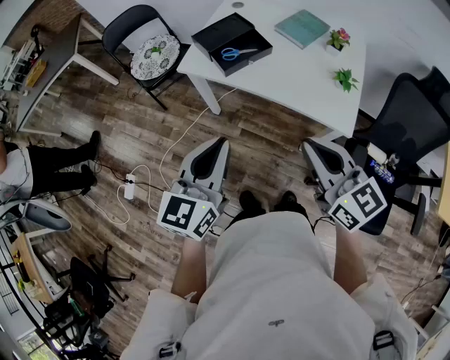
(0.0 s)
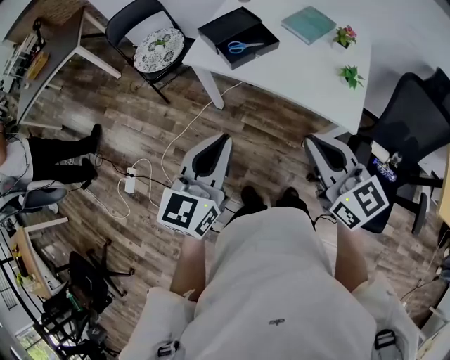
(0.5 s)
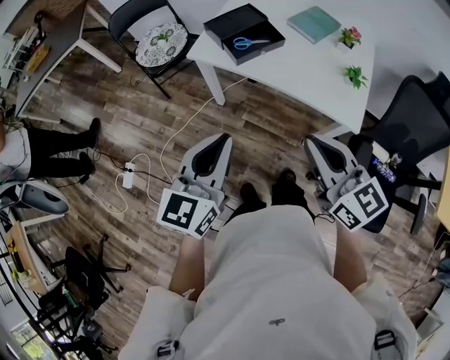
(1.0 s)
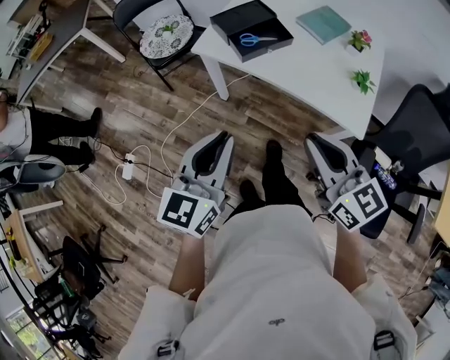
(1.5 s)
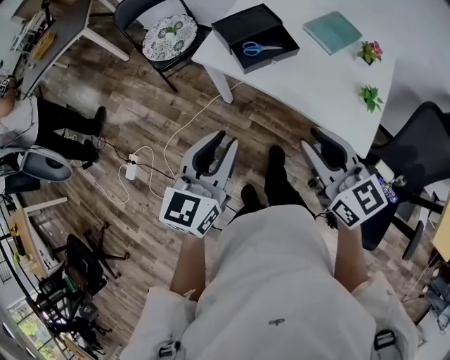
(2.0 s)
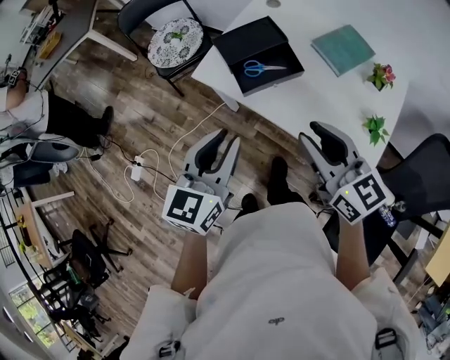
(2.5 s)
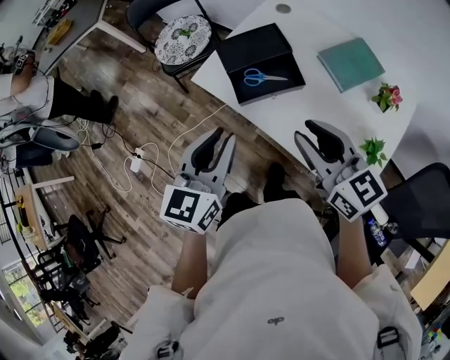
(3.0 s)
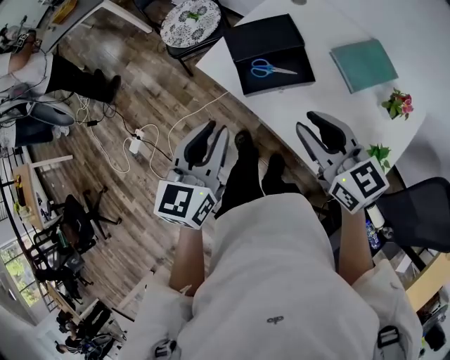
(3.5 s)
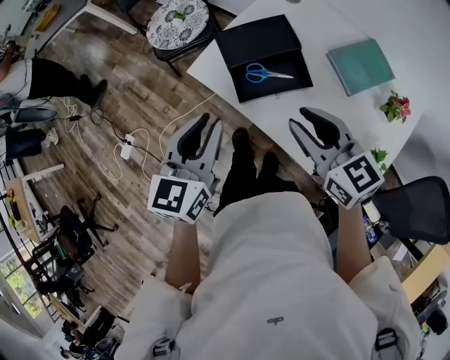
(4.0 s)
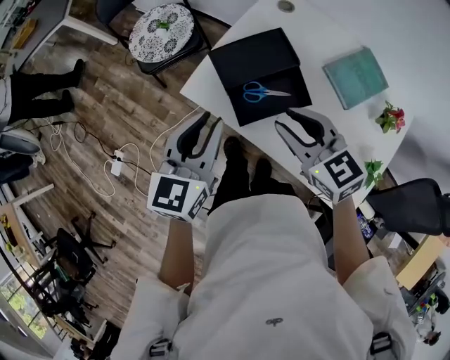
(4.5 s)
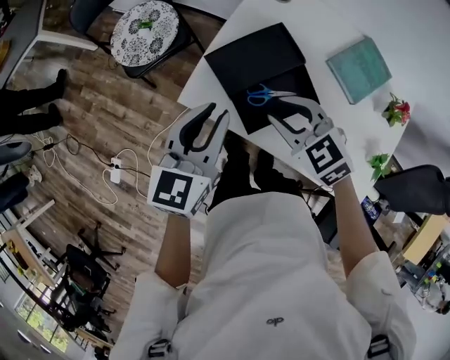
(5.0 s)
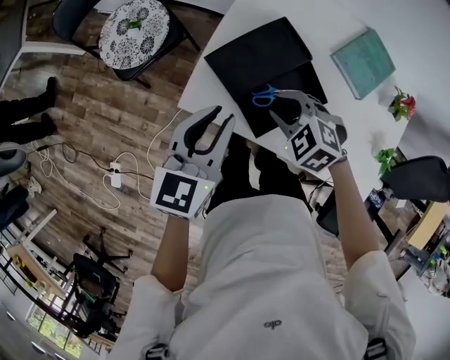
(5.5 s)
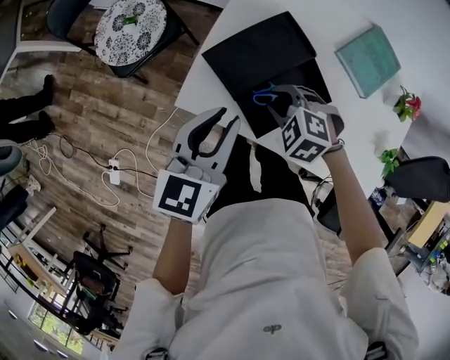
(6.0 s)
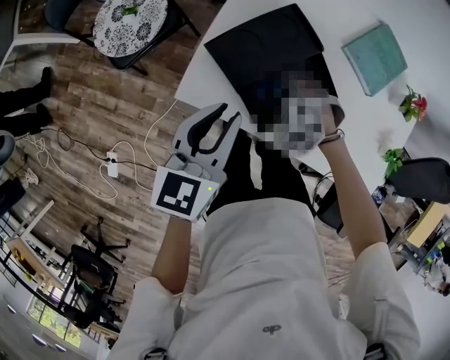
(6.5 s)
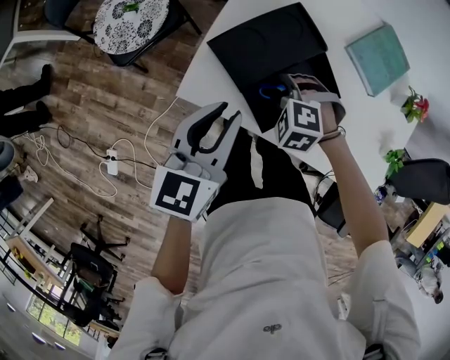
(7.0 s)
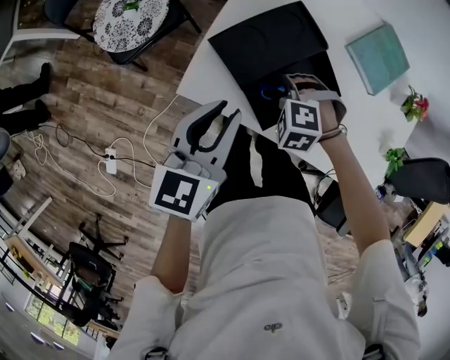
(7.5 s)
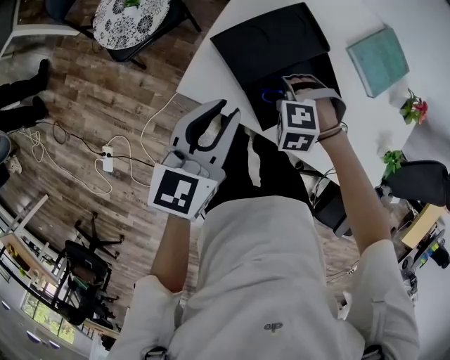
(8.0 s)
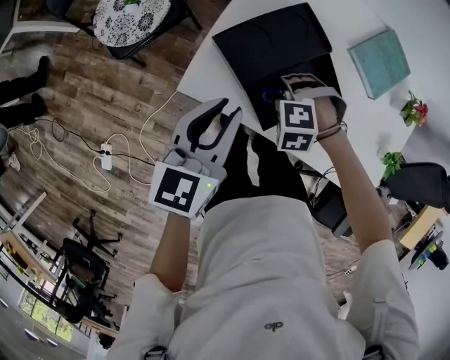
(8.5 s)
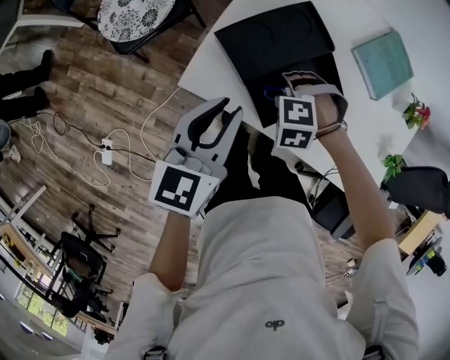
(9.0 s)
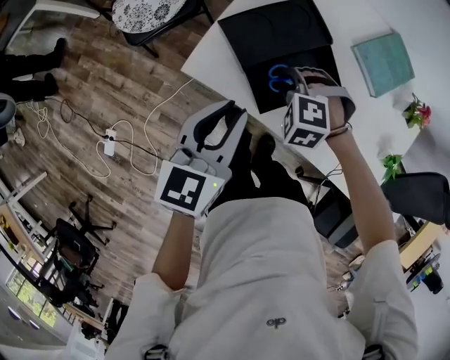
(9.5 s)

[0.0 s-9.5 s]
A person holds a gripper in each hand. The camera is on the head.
0.0 to 2.0 s: The two grippers go approximately 5 cm forward. The right gripper opens.
2.0 to 4.0 s: The grippers both shift forward by approximately 20 cm.
4.0 to 5.5 s: The left gripper goes about 15 cm forward and downward, and swivels approximately 20 degrees. Meanwhile the right gripper is displaced downward and forward by roughly 20 cm, and tilts its fingers roughly 40 degrees downward.
5.5 to 7.5 s: The right gripper moves downward, roughly 10 cm, and changes its angle by approximately 30 degrees.
7.5 to 9.5 s: The left gripper moves approximately 5 cm.

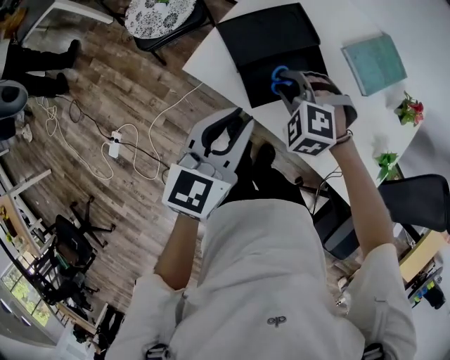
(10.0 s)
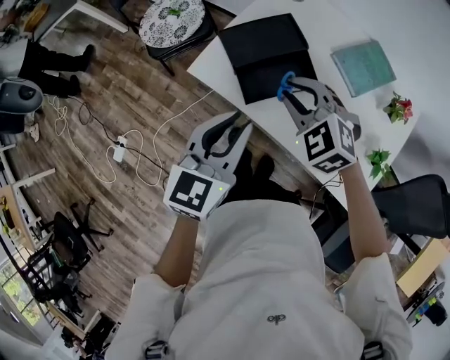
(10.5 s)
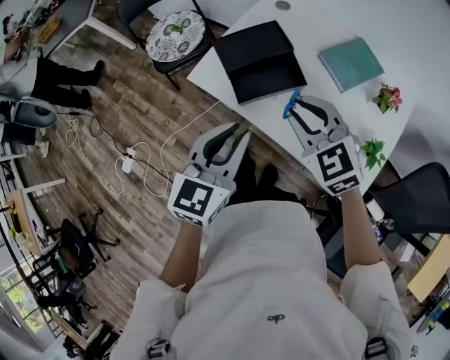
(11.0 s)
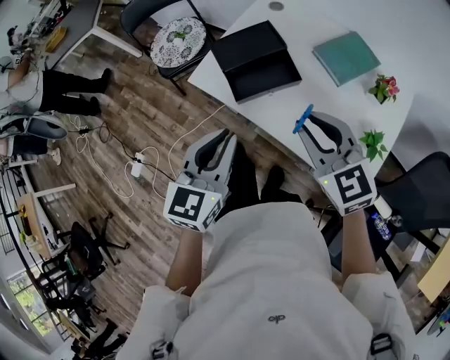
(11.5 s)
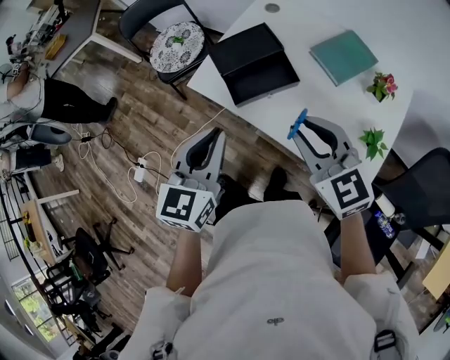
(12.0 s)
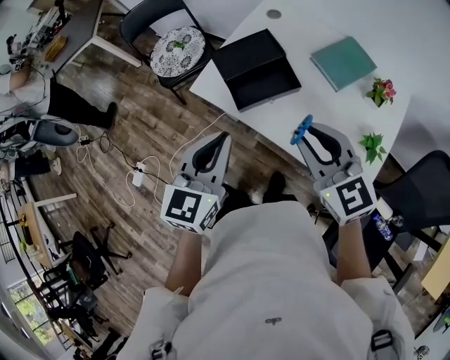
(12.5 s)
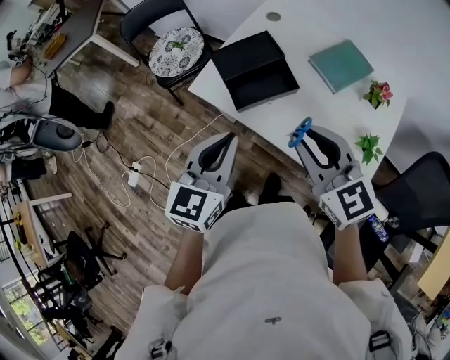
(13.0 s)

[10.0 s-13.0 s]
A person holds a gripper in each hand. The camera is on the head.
10.0 to 11.5 s: The left gripper heads backward and upward, covering roughly 15 cm. Meanwhile the right gripper travels upward, backward and to the right by approximately 25 cm, and points its fingers about 40 degrees further upward.
11.5 to 13.0 s: The grippers make only small movements.

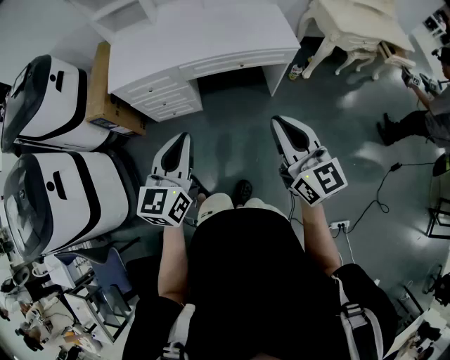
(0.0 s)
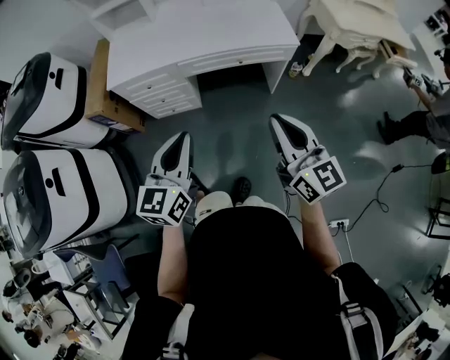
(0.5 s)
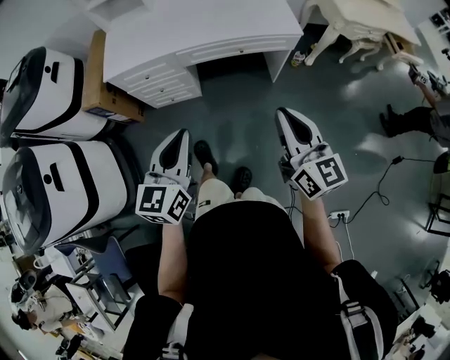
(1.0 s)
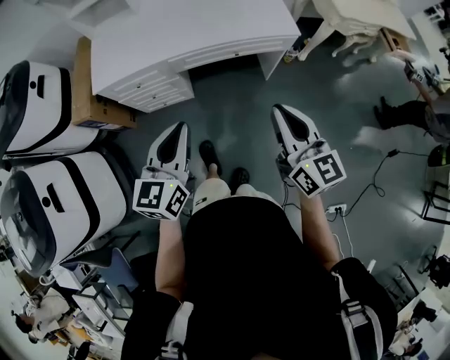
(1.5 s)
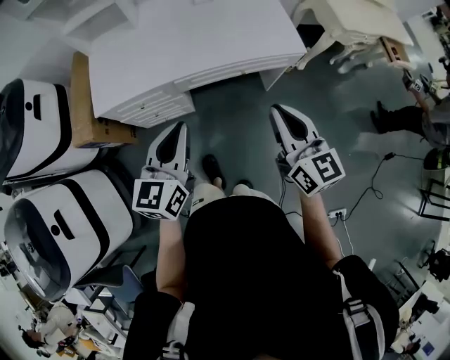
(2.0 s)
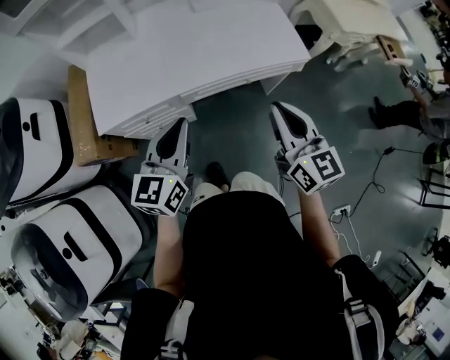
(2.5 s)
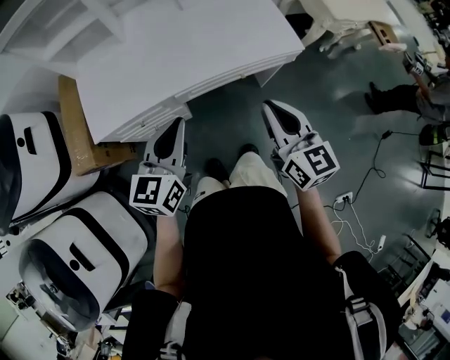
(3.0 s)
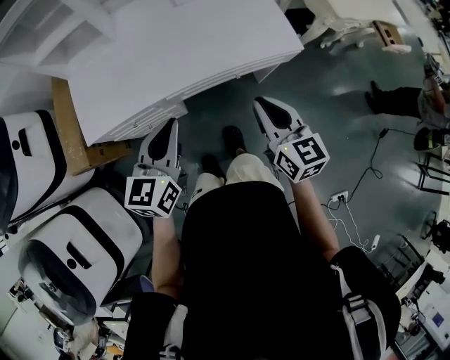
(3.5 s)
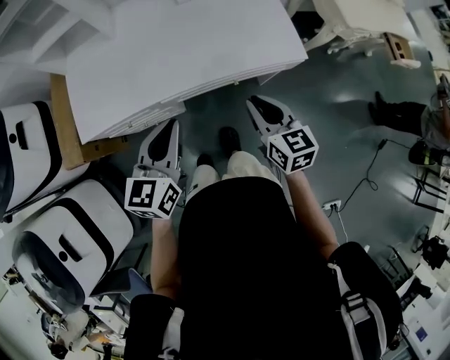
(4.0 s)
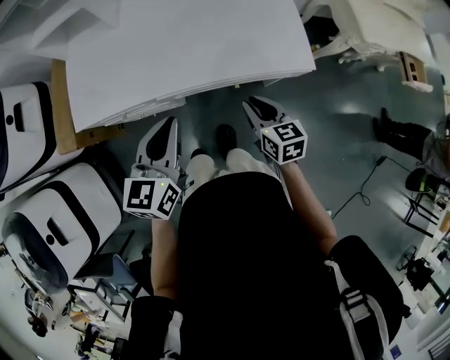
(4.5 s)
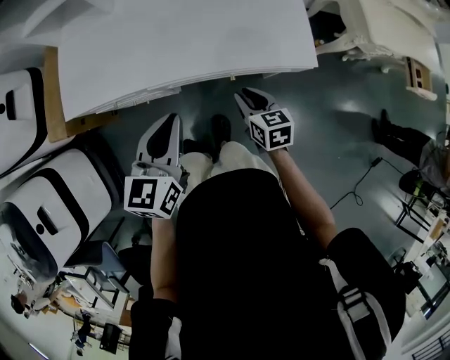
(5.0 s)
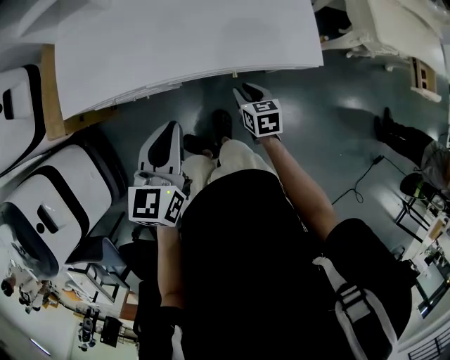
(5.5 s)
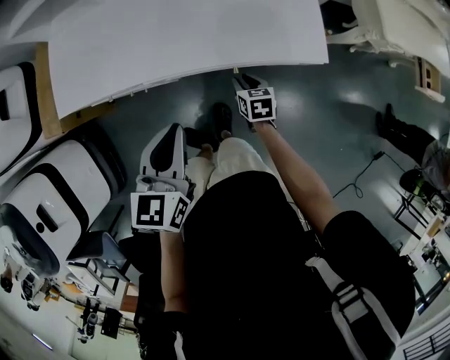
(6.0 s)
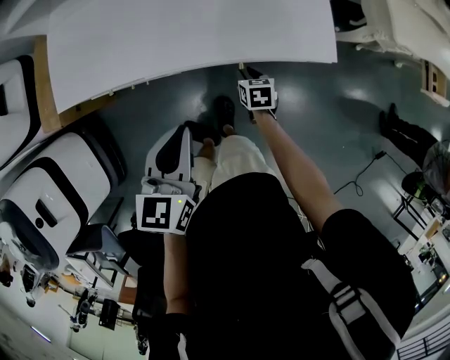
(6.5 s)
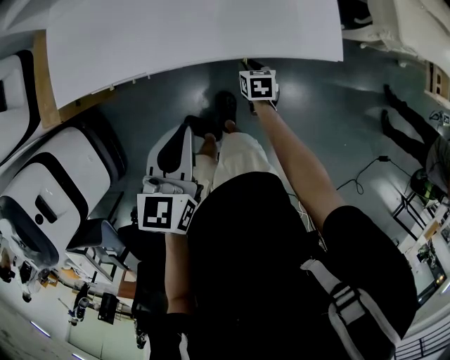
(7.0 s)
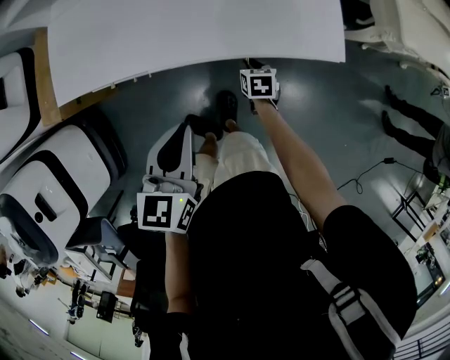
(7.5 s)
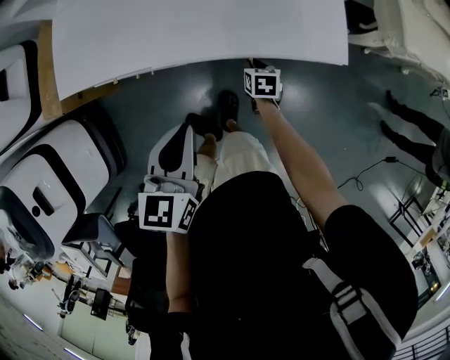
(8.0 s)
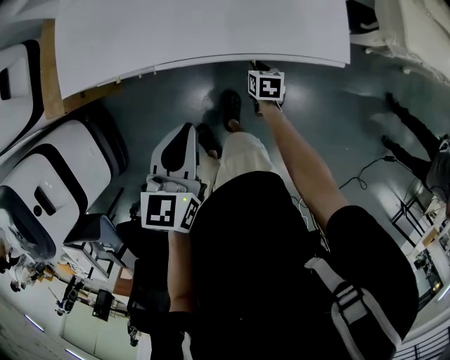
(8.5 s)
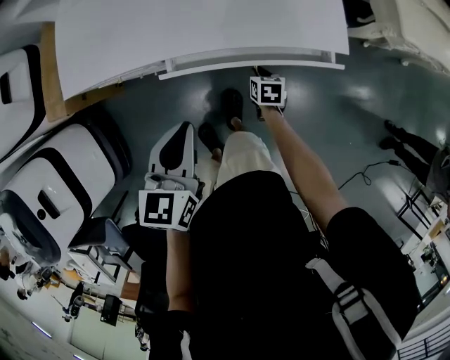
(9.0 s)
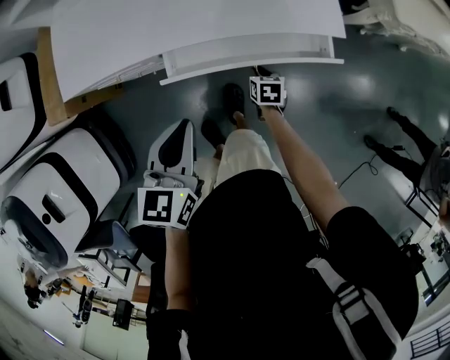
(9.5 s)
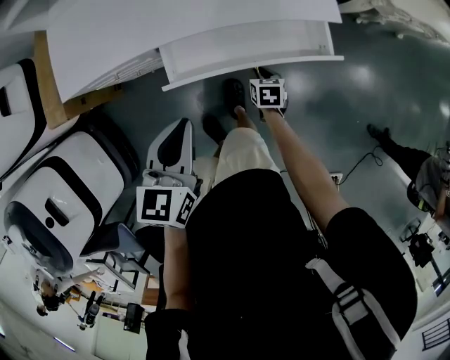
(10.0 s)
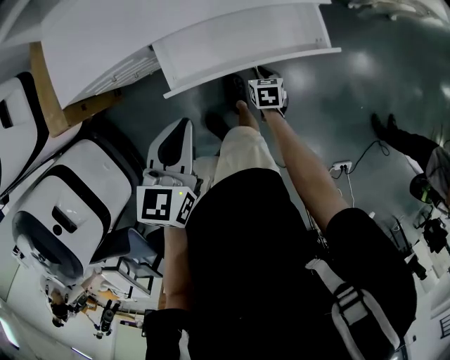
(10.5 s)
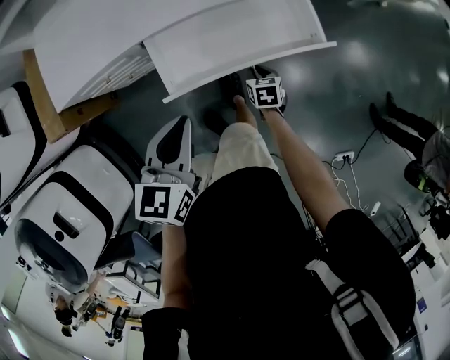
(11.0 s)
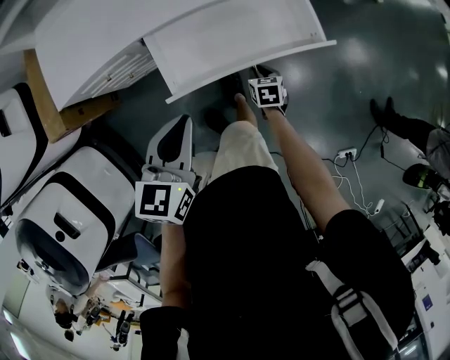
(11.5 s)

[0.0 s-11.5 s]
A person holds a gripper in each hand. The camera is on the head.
0.0 to 2.0 s: The two grippers go roughly 20 cm forward.
2.0 to 4.0 s: The right gripper is displaced forward and downward by roughly 20 cm, while the left gripper shifts some 15 cm forward.
4.0 to 6.0 s: The left gripper heads to the right and downward, covering approximately 10 cm, while the right gripper heads downward, covering some 25 cm, and swivels about 30 degrees.
6.0 to 7.5 s: The right gripper moves downward, approximately 5 cm.
7.5 to 9.5 s: The left gripper heads backward, covering some 5 cm, while the right gripper goes roughly 10 cm backward.
9.5 to 11.5 s: The grippers both shift backward by about 15 cm.

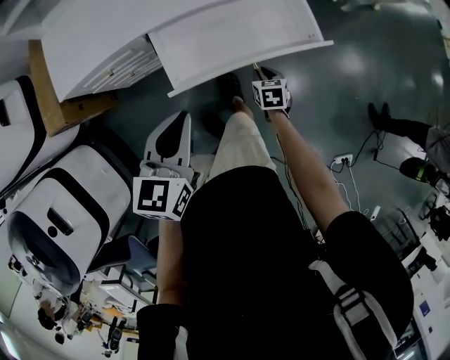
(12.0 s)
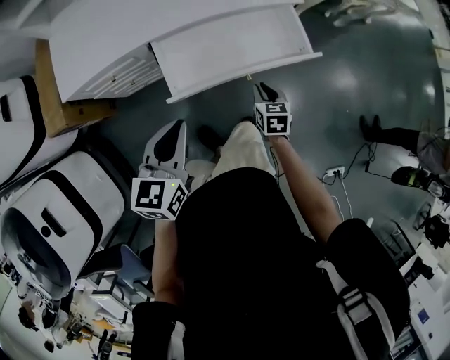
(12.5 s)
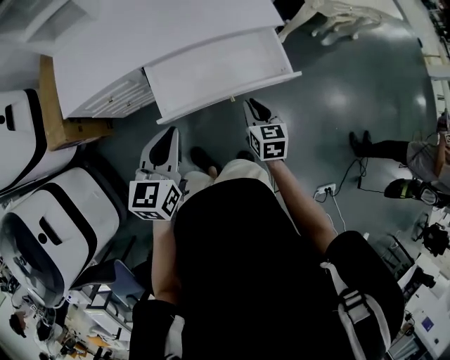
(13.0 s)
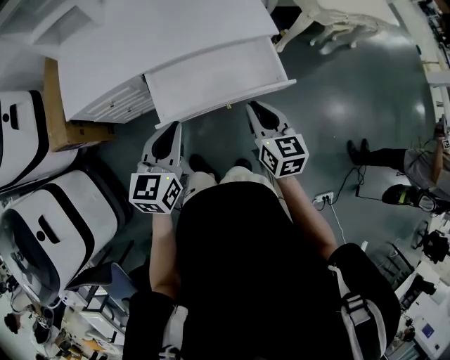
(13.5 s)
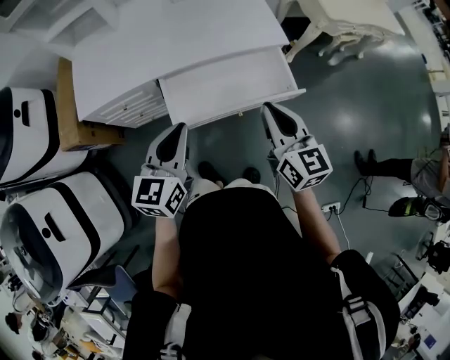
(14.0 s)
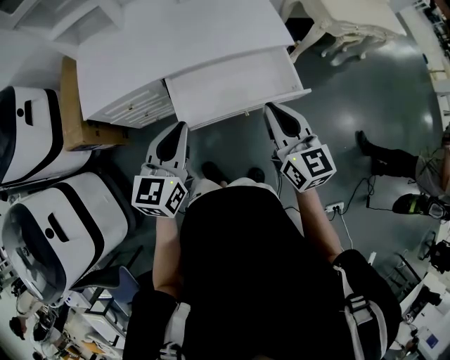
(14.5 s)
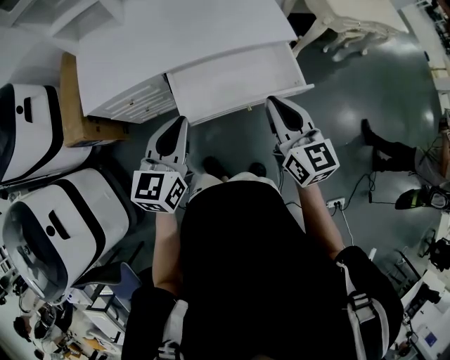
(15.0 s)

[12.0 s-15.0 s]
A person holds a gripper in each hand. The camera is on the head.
12.0 to 13.5 s: The right gripper goes about 30 cm upward, and angles its fingers upward, by approximately 30 degrees. Meanwhile the left gripper shifts about 5 cm upward.
13.5 to 15.0 s: The right gripper is displaced upward by approximately 10 cm; the left gripper moves to the left, about 5 cm.
